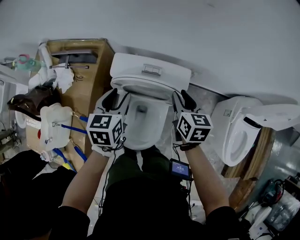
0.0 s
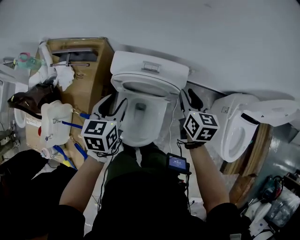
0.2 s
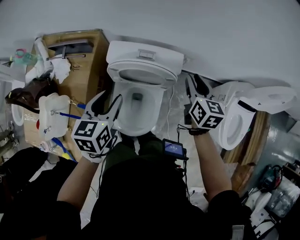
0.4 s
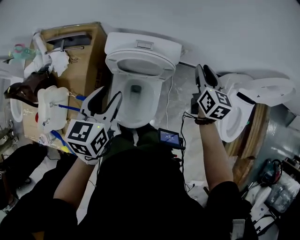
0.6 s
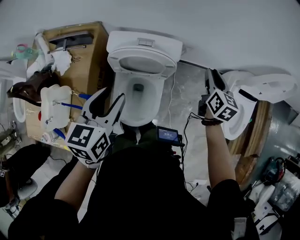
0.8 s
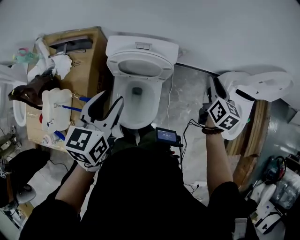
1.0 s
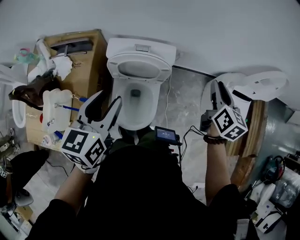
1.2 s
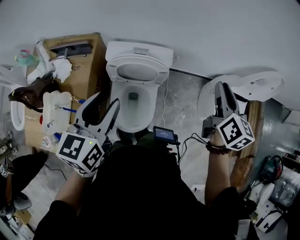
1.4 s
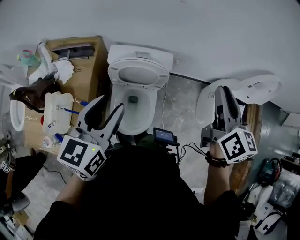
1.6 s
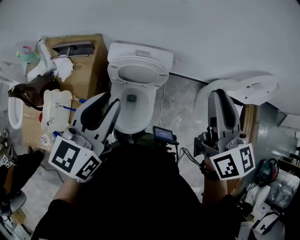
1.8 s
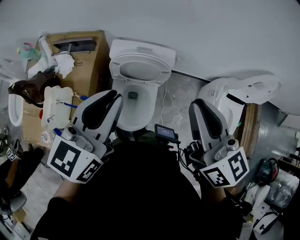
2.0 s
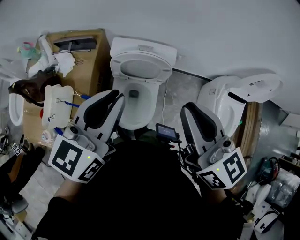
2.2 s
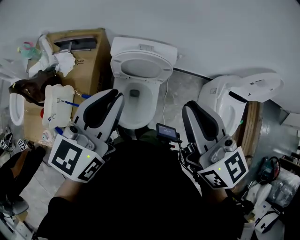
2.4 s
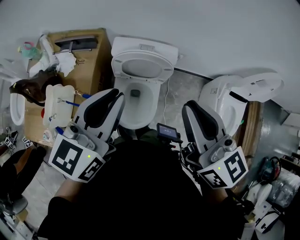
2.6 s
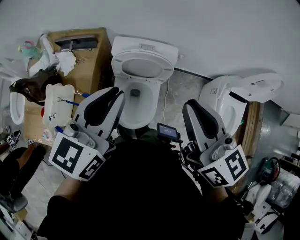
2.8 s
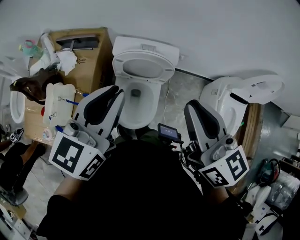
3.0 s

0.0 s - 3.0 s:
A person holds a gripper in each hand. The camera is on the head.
0.0 s - 1.6 s: Both grippers move upward and backward, some 30 cm. The right gripper turns by about 30 degrees, while the left gripper swivels some 20 degrees.
1.6 s - 3.0 s: The right gripper goes some 15 cm to the left and backward, and rotates roughly 20 degrees; the left gripper closes up.

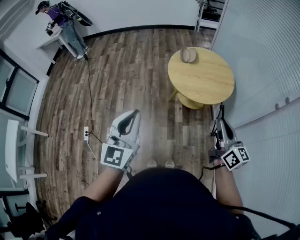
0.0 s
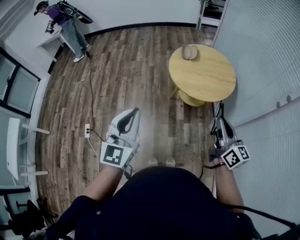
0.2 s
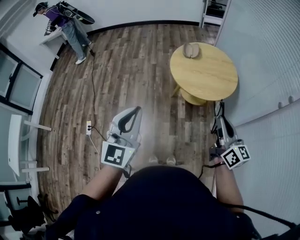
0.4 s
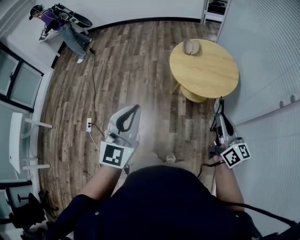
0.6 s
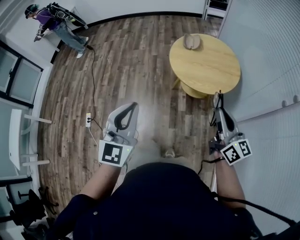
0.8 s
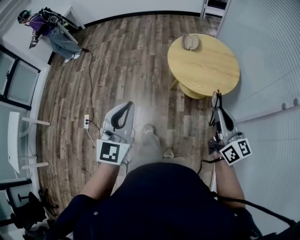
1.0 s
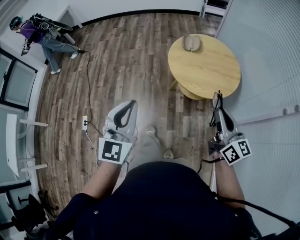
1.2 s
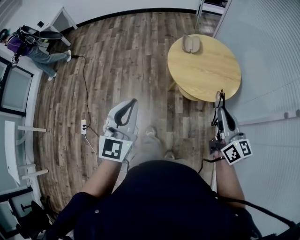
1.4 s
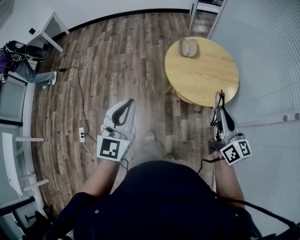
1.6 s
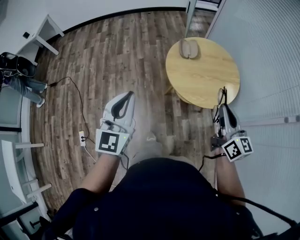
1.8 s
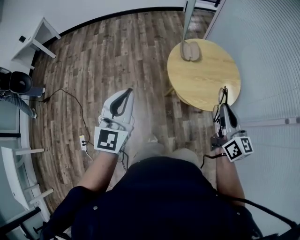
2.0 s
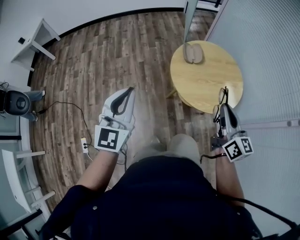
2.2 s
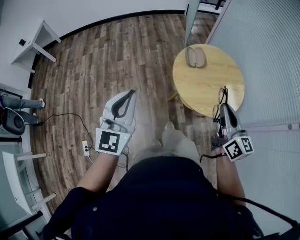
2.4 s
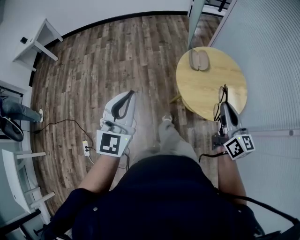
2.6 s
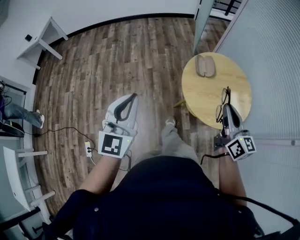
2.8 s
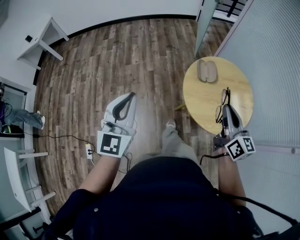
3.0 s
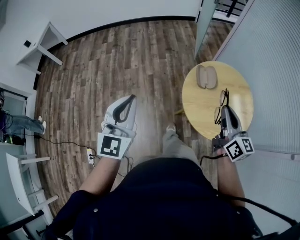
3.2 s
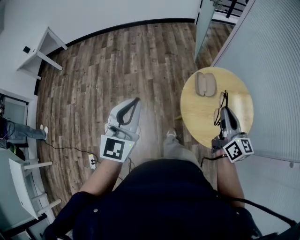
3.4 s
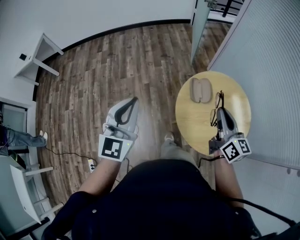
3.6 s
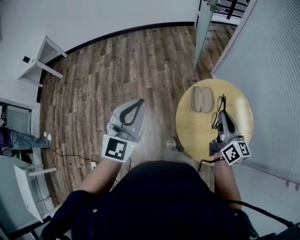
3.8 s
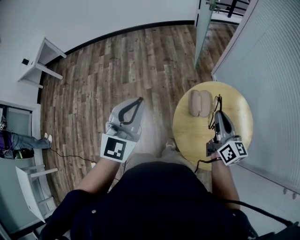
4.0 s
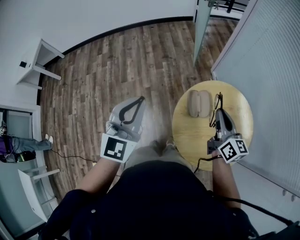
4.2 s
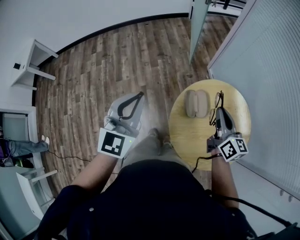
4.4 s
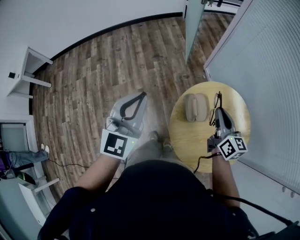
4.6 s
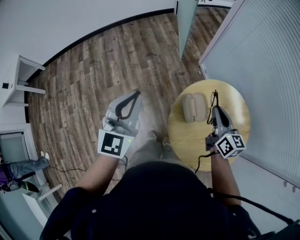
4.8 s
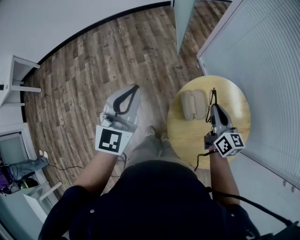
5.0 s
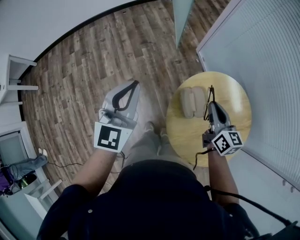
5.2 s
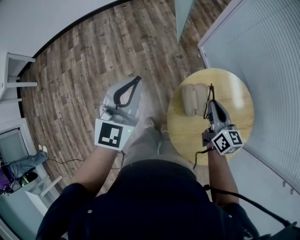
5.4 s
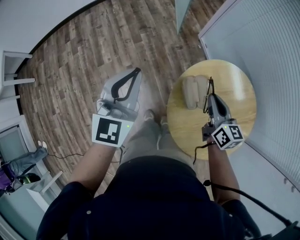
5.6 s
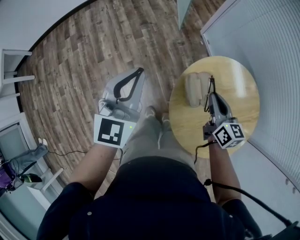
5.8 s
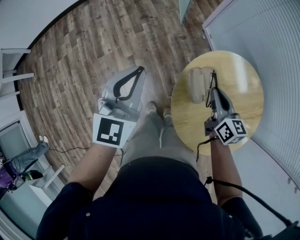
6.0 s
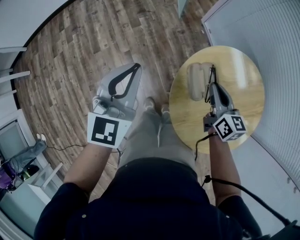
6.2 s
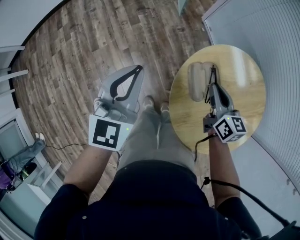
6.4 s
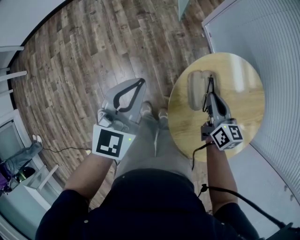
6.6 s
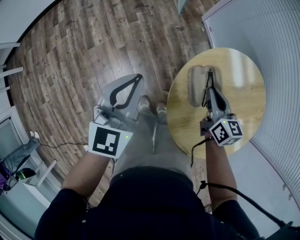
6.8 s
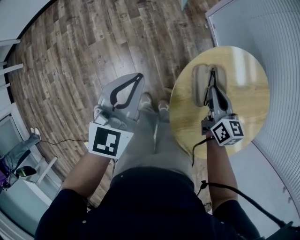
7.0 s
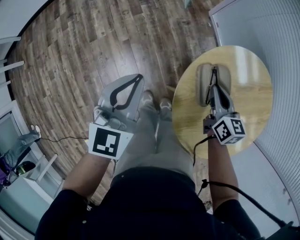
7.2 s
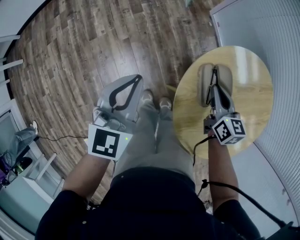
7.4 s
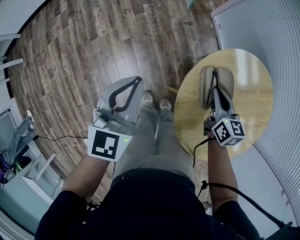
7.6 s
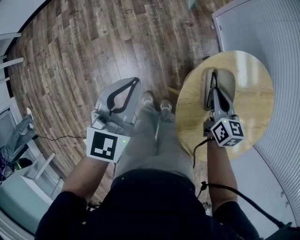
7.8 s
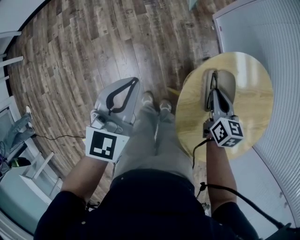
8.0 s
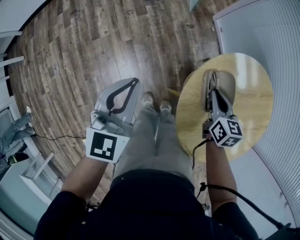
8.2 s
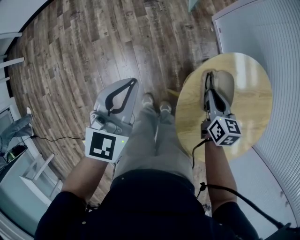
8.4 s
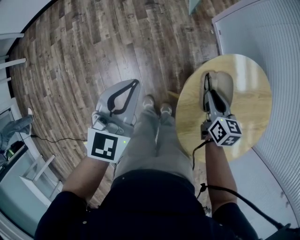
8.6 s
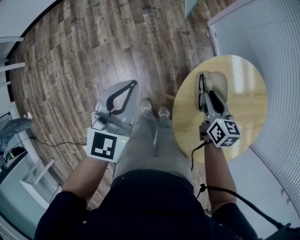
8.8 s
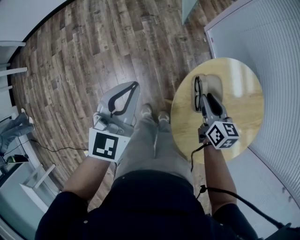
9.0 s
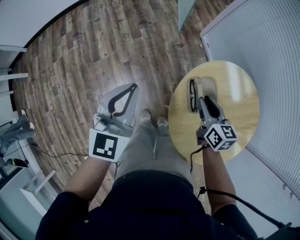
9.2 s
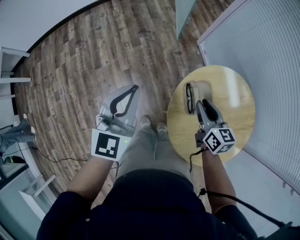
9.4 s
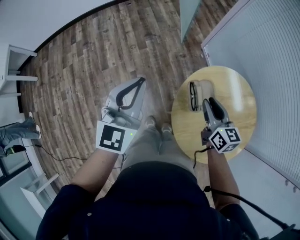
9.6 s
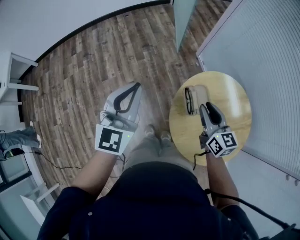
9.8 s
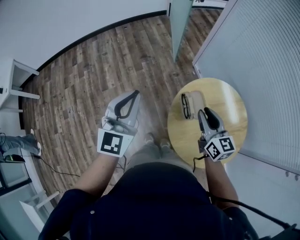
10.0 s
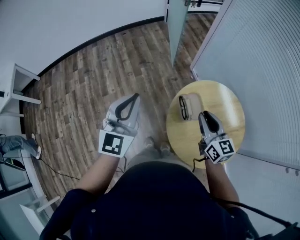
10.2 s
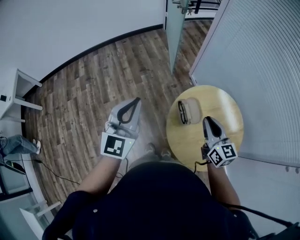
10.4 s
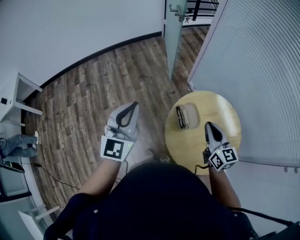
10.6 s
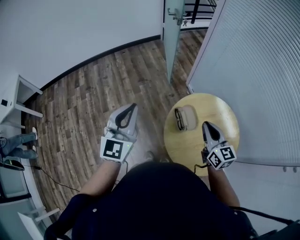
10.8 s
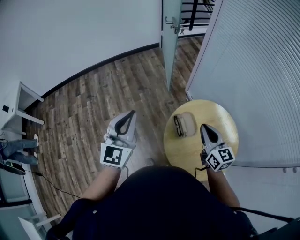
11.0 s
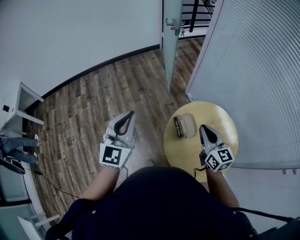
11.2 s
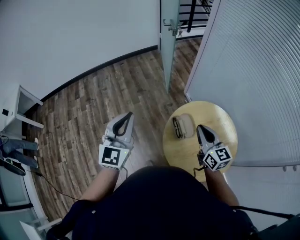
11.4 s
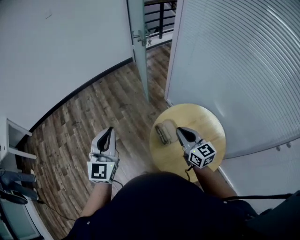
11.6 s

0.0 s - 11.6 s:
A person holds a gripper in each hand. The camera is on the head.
0.0 s - 1.4 s: The grippers both shift forward by approximately 10 cm.
1.4 s - 2.8 s: The two grippers go approximately 25 cm forward and to the left.
2.8 s - 4.4 s: Both grippers travel together forward, about 35 cm.
4.4 s - 5.8 s: The left gripper travels forward and downward by about 15 cm, while the right gripper moves downward and forward, some 15 cm.
5.8 s - 7.2 s: Both grippers move downward, roughly 10 cm.
7.2 s - 8.8 s: The grippers move only a little.
8.8 s - 10.2 s: The left gripper is displaced upward by roughly 20 cm. The right gripper is displaced upward and backward by some 25 cm, and rotates some 30 degrees.

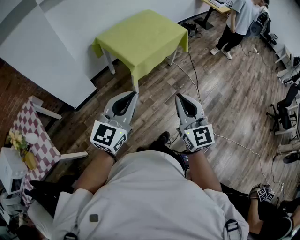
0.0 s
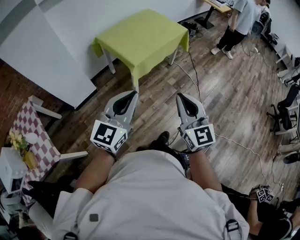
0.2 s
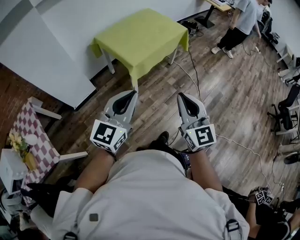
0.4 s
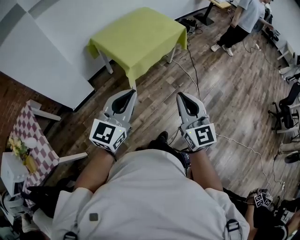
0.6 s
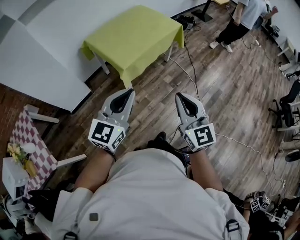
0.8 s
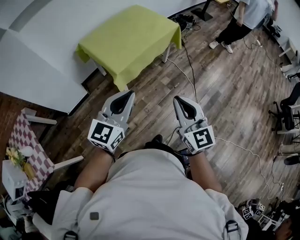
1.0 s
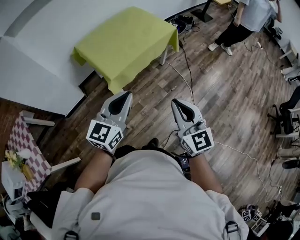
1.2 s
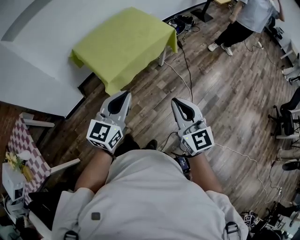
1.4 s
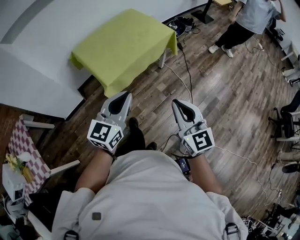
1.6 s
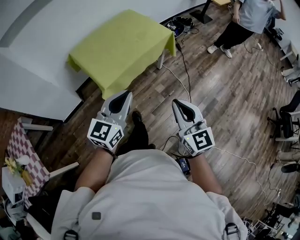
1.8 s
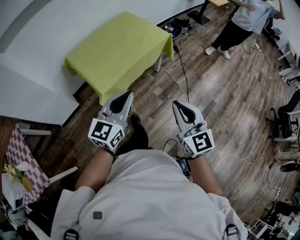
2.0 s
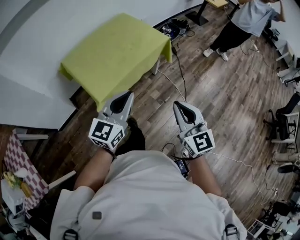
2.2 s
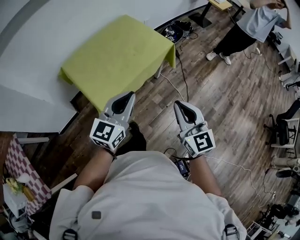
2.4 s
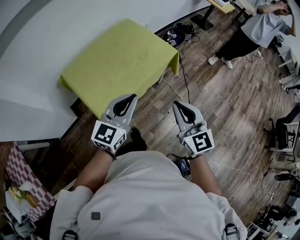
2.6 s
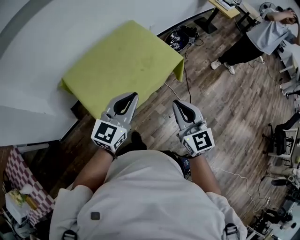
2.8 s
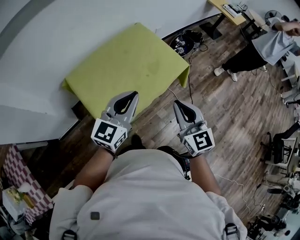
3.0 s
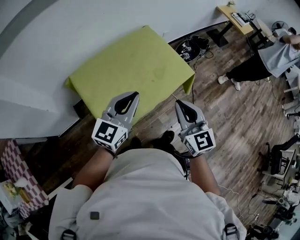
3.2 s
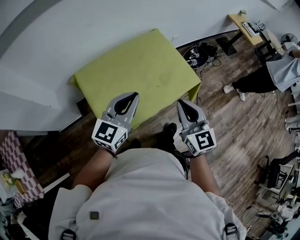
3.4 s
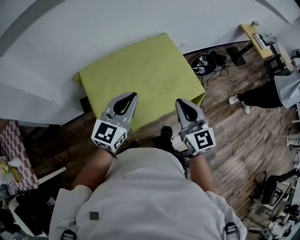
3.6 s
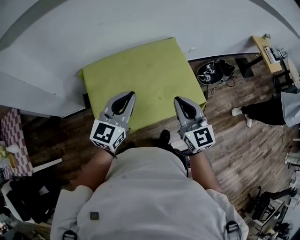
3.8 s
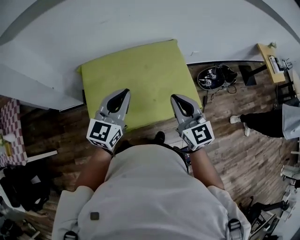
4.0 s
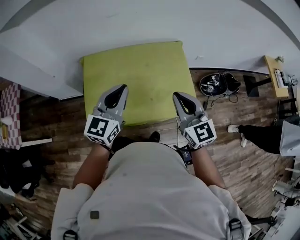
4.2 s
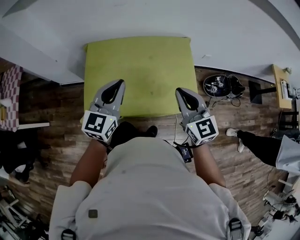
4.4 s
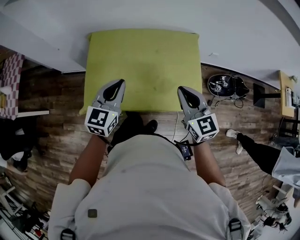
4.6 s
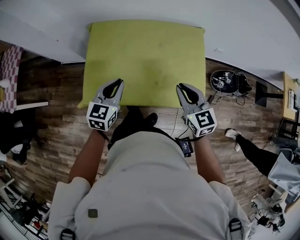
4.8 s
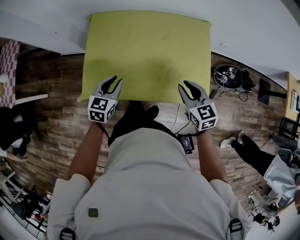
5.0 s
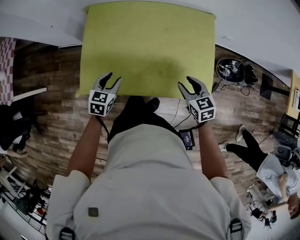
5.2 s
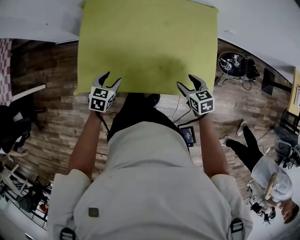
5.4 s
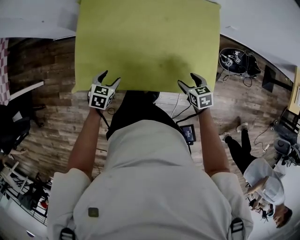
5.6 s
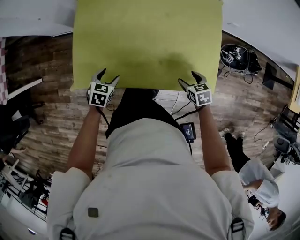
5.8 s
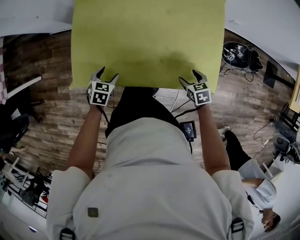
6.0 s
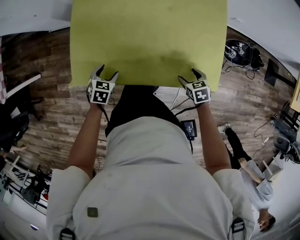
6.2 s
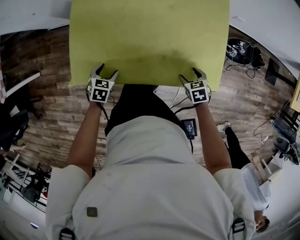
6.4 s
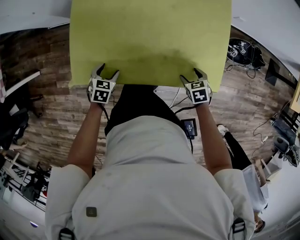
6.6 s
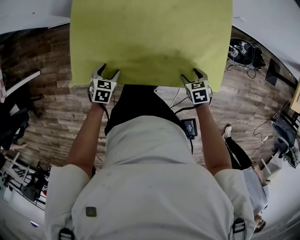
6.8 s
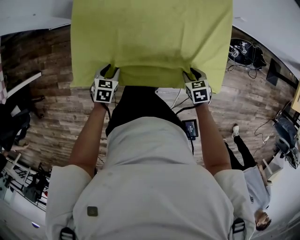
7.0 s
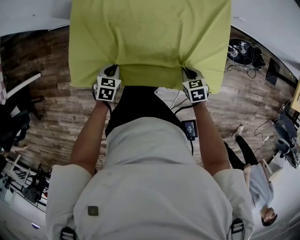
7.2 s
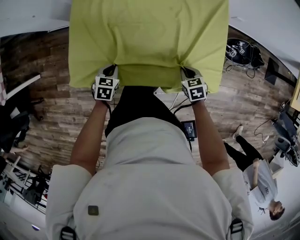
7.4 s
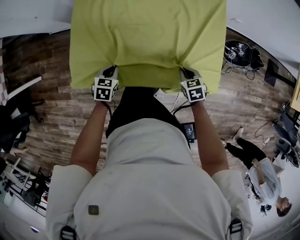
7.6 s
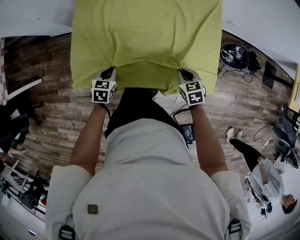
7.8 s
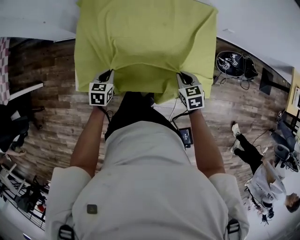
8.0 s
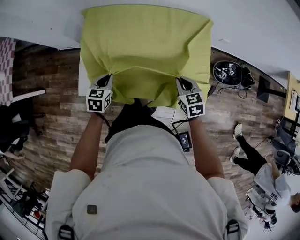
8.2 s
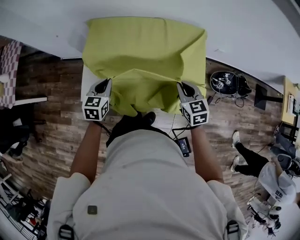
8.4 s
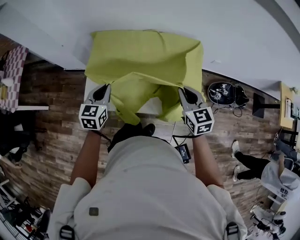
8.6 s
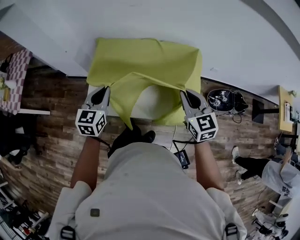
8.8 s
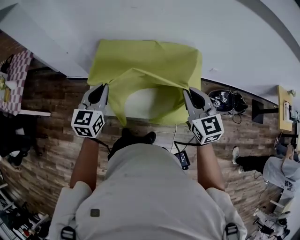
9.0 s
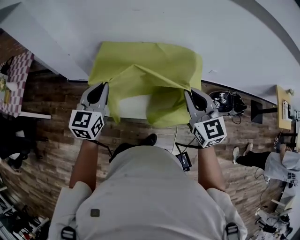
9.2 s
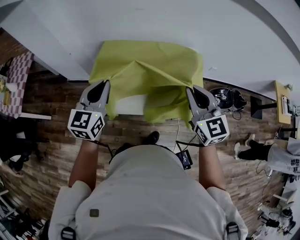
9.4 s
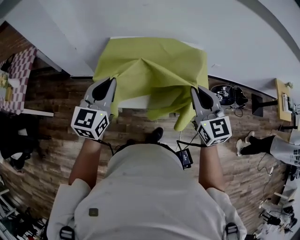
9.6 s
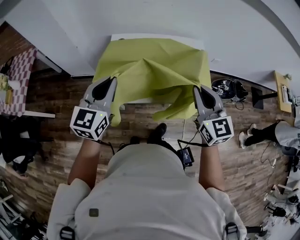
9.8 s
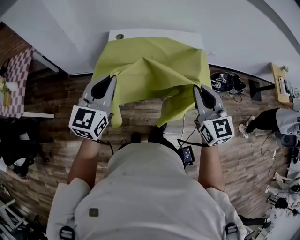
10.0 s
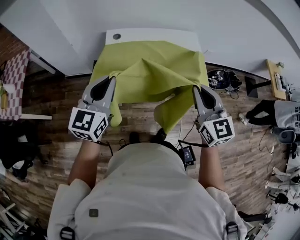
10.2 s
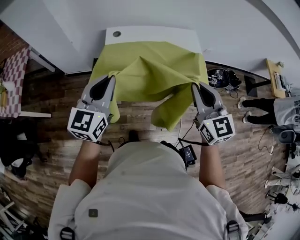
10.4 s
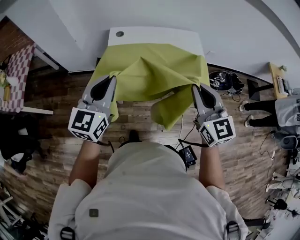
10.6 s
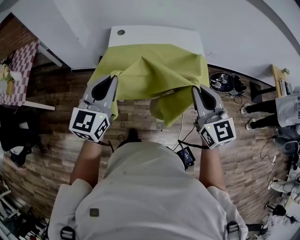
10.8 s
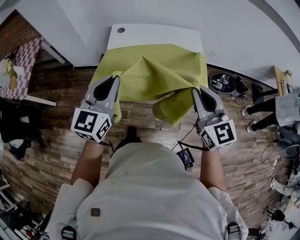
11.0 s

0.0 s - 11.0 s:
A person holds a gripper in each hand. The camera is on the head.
0.0 s - 1.6 s: Both grippers travel together forward and to the right, some 30 cm.
1.6 s - 3.2 s: The pair of grippers is taken forward, roughly 40 cm.
3.2 s - 4.8 s: The left gripper shifts about 15 cm downward, and changes its angle by roughly 50 degrees, while the right gripper ends up approximately 25 cm from where it was, and swivels approximately 40 degrees.
4.8 s - 6.2 s: The grippers both shift downward by approximately 30 cm. The right gripper tips its fingers downward by about 50 degrees, and opens. Meanwhile the left gripper angles its fingers downward, by approximately 40 degrees, and opens up.
6.2 s - 7.8 s: The left gripper closes; the right gripper shifts by about 5 cm, and closes its fingers.
7.8 s - 9.4 s: Both grippers travel together upward, roughly 40 cm. The right gripper tilts its fingers approximately 50 degrees upward. The left gripper tips its fingers upward by about 40 degrees.
9.4 s - 11.0 s: Both grippers move backward, roughly 20 cm.
